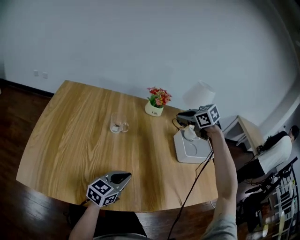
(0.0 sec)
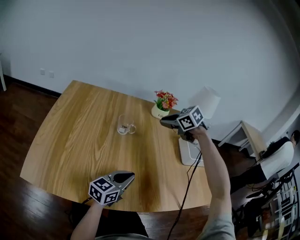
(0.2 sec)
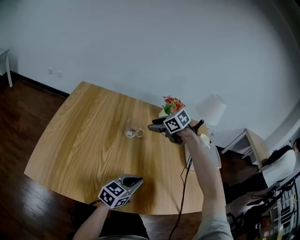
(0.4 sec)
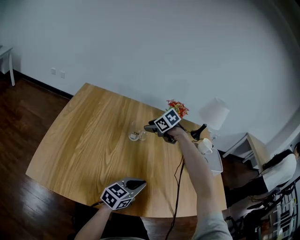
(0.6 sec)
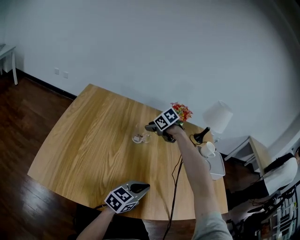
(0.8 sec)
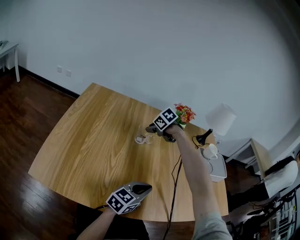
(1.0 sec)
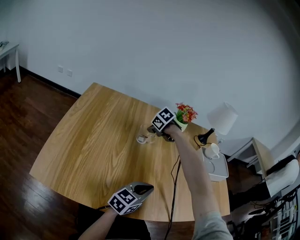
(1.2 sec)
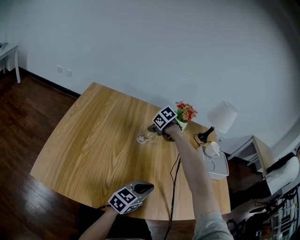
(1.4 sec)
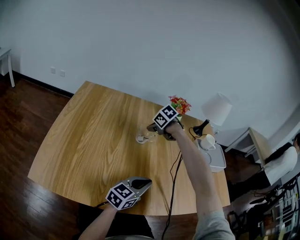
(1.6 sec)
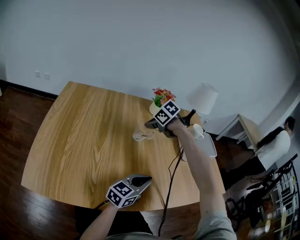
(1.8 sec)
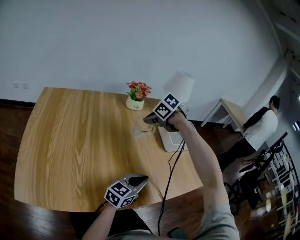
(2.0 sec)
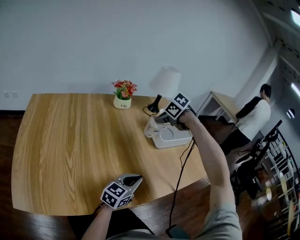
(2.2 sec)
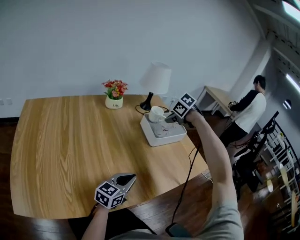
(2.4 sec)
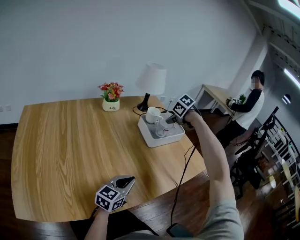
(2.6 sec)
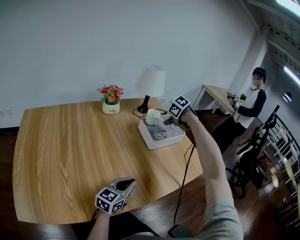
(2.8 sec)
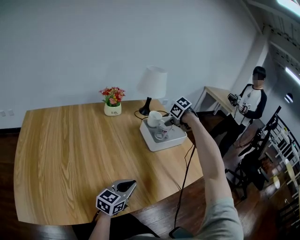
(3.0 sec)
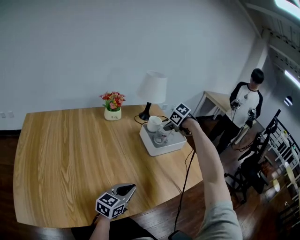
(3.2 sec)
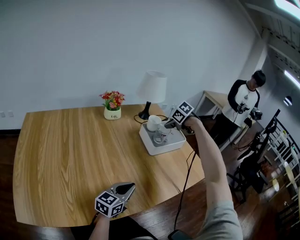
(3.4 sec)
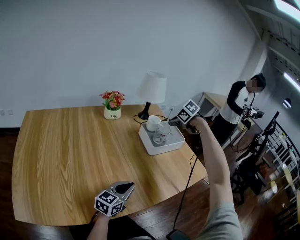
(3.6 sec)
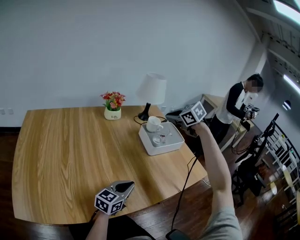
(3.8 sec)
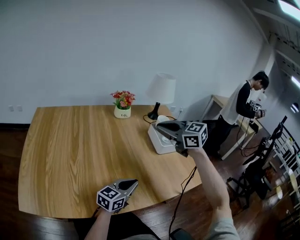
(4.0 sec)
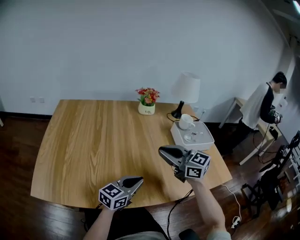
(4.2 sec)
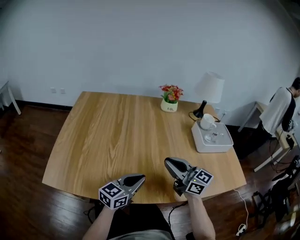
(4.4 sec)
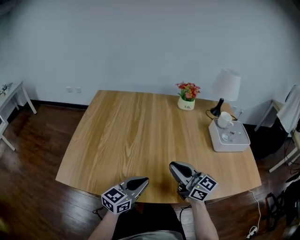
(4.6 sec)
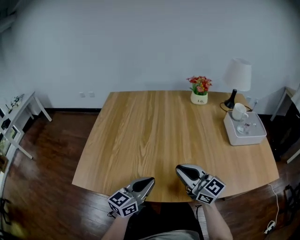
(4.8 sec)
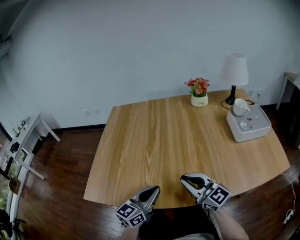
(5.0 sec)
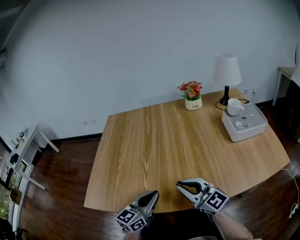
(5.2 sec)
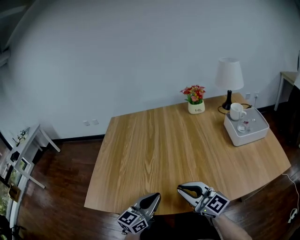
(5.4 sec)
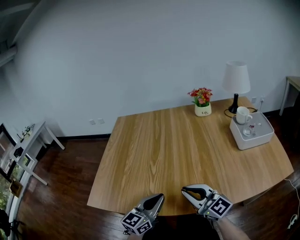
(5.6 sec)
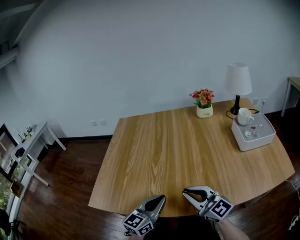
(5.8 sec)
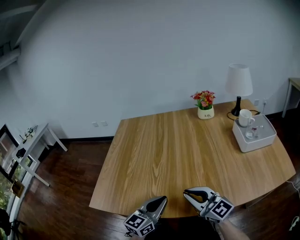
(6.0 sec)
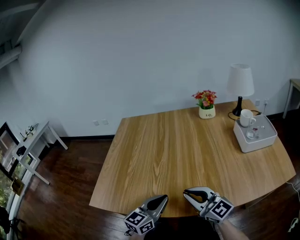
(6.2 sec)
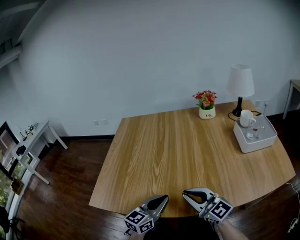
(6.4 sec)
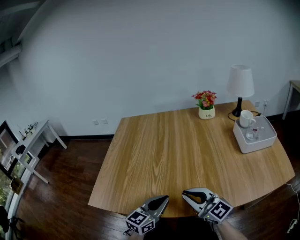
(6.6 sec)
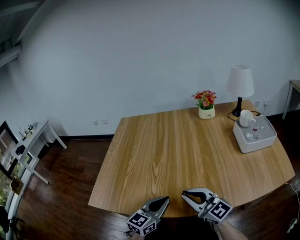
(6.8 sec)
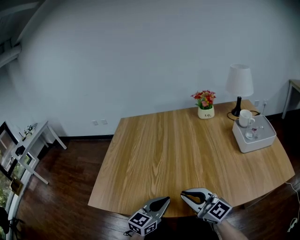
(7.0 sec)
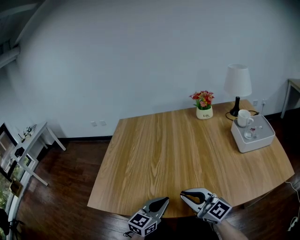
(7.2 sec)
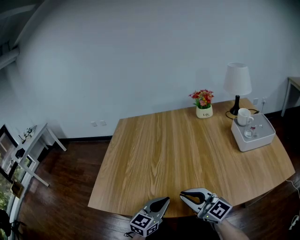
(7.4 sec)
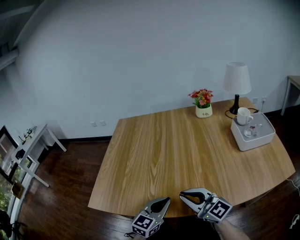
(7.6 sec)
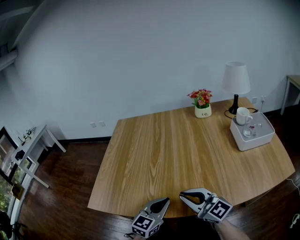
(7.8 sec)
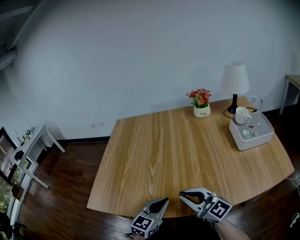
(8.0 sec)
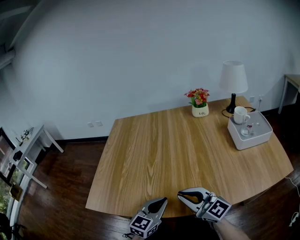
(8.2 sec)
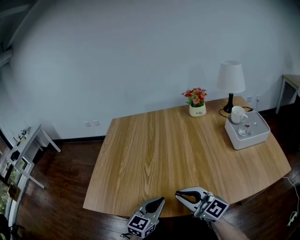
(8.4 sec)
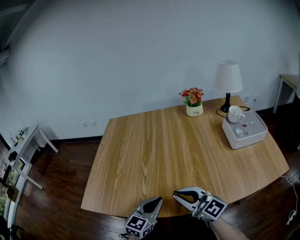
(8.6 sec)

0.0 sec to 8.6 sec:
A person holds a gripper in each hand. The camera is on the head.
0.0 sec to 1.4 sec: The right gripper travels to the left and downward by roughly 30 cm, changes its angle by roughly 30 degrees, and opens and closes again.
1.4 sec to 2.8 sec: The left gripper shifts about 15 cm to the right; the right gripper heads to the right, covering some 50 cm, and swivels about 30 degrees.
2.8 sec to 4.4 sec: The left gripper ends up about 15 cm from where it was. Meanwhile the right gripper reaches about 15 cm upward, then returns, and tips its fingers upward by some 70 degrees.
4.4 sec to 5.8 sec: The right gripper travels to the left and backward by roughly 10 cm, while the left gripper travels to the left by about 10 cm.
5.8 sec to 8.6 sec: There are only small adjustments of the grippers.

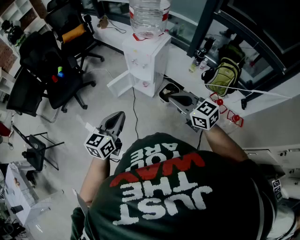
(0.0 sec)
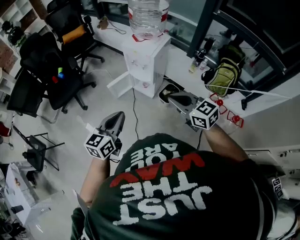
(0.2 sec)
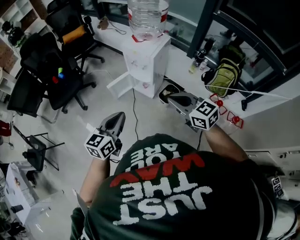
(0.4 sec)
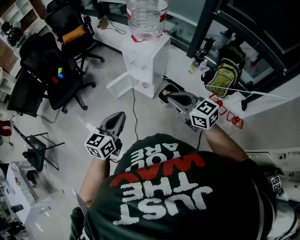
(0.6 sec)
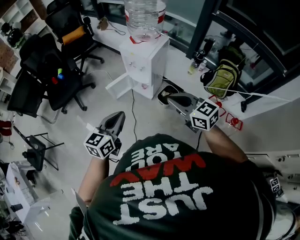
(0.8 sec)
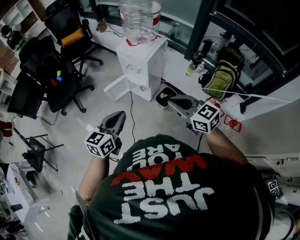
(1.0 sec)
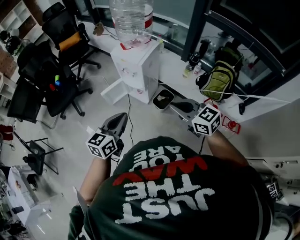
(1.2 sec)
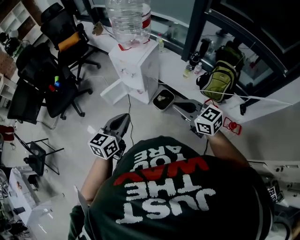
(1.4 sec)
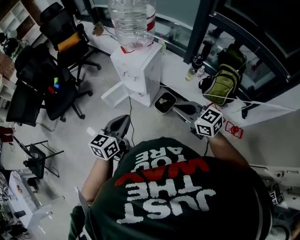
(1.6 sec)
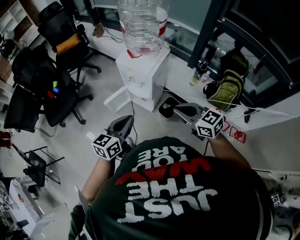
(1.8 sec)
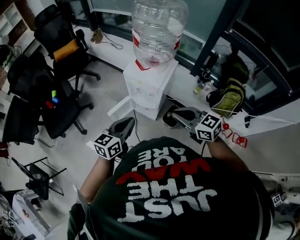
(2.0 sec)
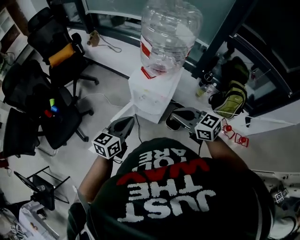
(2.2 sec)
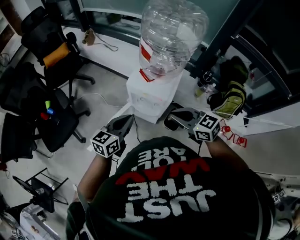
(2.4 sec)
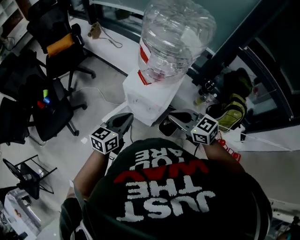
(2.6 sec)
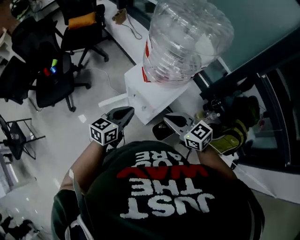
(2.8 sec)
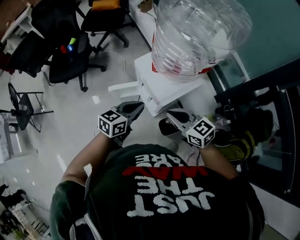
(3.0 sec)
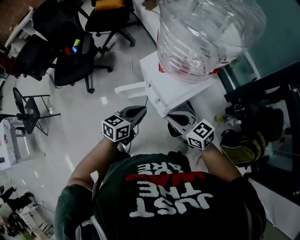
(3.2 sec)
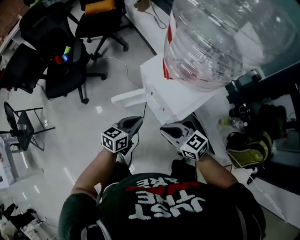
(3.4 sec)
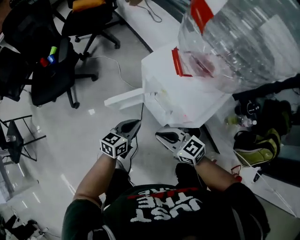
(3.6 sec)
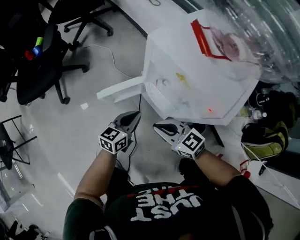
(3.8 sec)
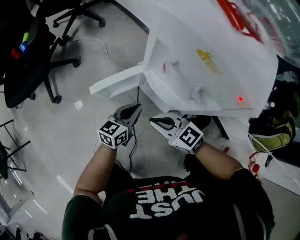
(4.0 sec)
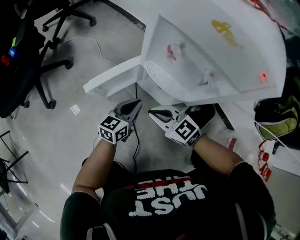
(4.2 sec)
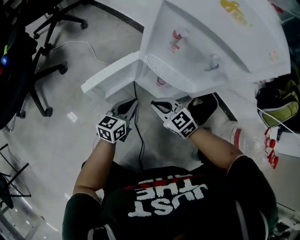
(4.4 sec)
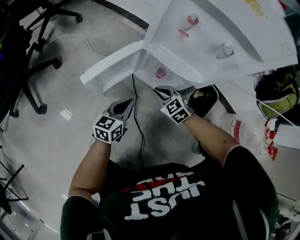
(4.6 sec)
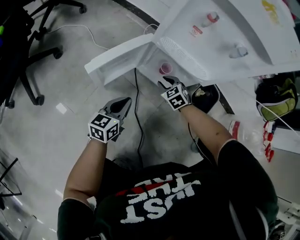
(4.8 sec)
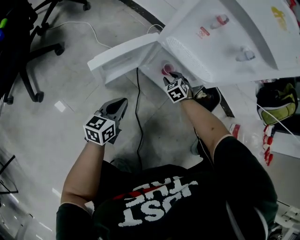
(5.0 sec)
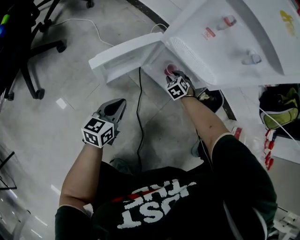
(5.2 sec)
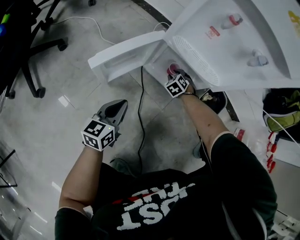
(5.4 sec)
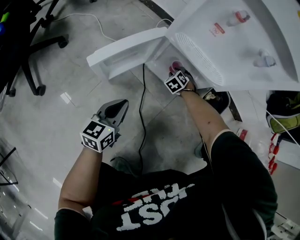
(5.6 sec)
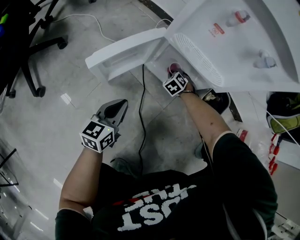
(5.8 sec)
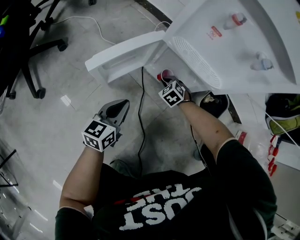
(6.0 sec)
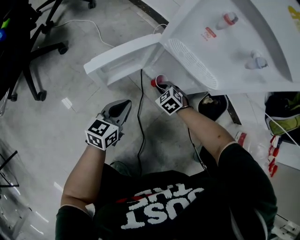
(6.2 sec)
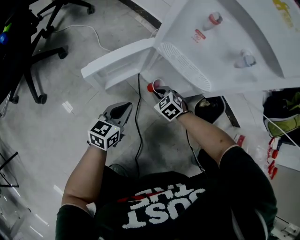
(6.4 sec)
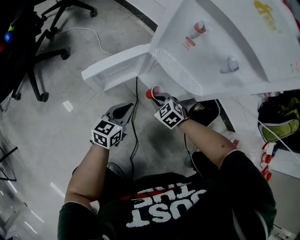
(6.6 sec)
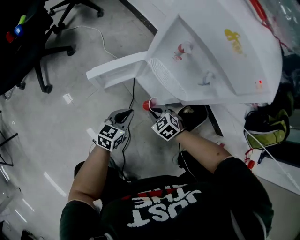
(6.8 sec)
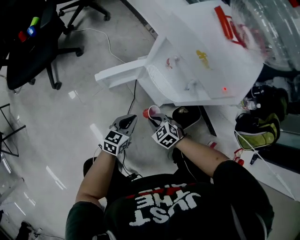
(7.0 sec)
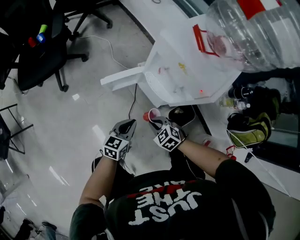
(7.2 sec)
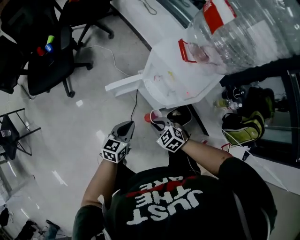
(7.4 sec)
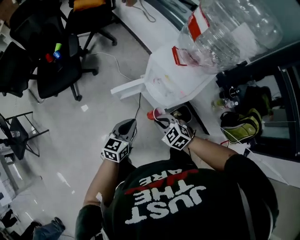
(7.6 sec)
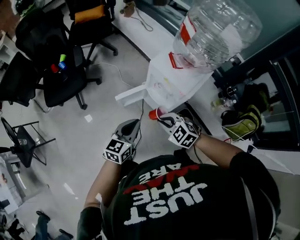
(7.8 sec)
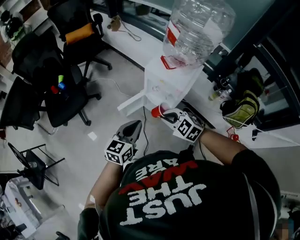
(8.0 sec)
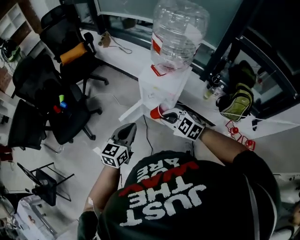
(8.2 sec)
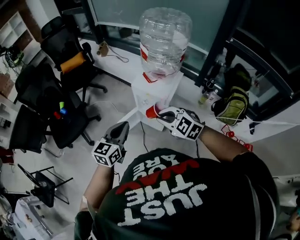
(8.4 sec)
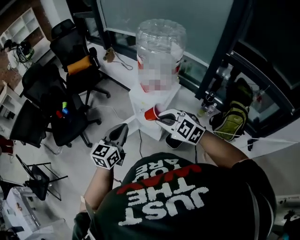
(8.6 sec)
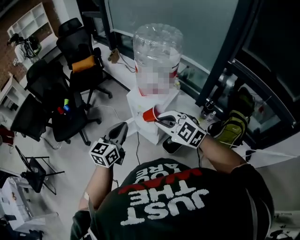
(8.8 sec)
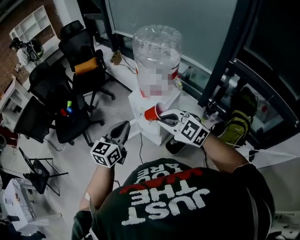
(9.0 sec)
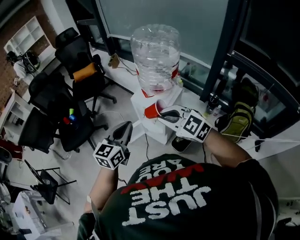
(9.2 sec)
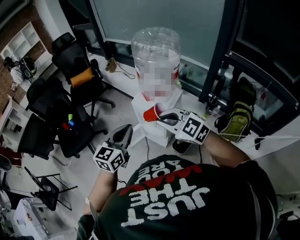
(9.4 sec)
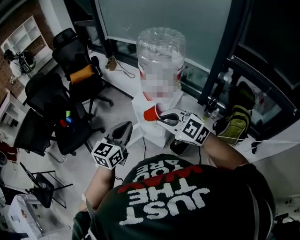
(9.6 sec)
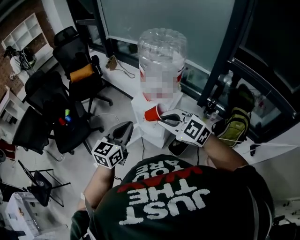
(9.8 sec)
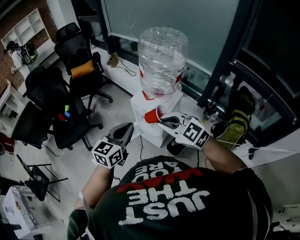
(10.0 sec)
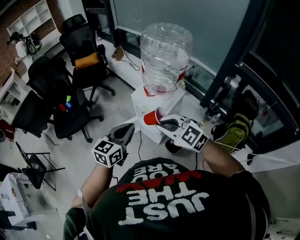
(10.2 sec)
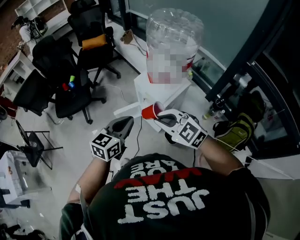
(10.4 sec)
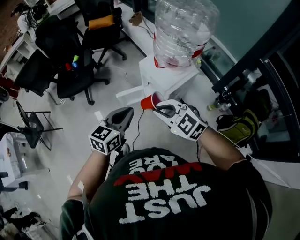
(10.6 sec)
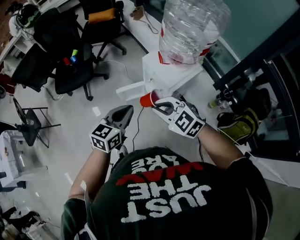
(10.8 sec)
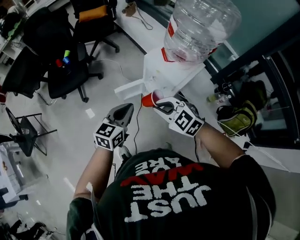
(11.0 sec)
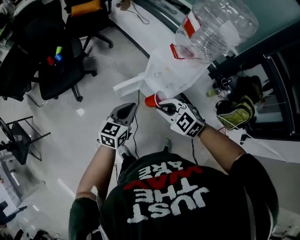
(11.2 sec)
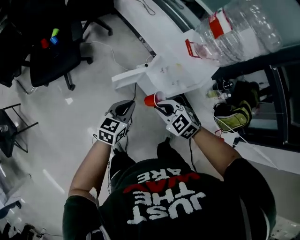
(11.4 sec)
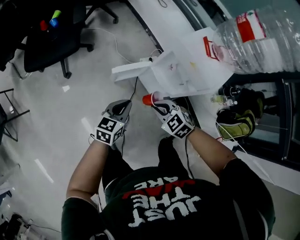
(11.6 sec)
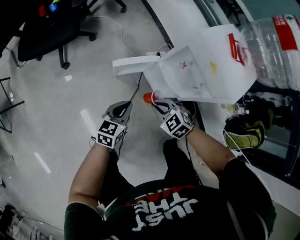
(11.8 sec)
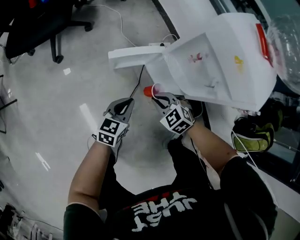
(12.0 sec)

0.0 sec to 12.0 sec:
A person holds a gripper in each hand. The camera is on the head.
0.0 sec to 1.6 sec: The grippers both shift to the right and forward by approximately 15 cm.
1.6 sec to 3.0 sec: Both grippers travel together forward, some 30 cm. The right gripper rotates approximately 20 degrees.
3.0 sec to 4.4 sec: Both grippers travel together downward, some 60 cm. The right gripper swivels approximately 30 degrees.
4.4 sec to 6.0 sec: The right gripper heads downward, covering about 20 cm, rotates some 30 degrees, and opens, then closes once more. The left gripper shifts by about 10 cm.
6.0 sec to 7.6 sec: The grippers both shift upward by some 60 cm. The right gripper swivels approximately 30 degrees.
7.6 sec to 9.0 sec: The grippers both shift upward by some 35 cm. The right gripper turns by roughly 30 degrees.
9.0 sec to 10.4 sec: The left gripper shifts by roughly 5 cm. Meanwhile the right gripper travels downward by some 5 cm.
10.4 sec to 12.0 sec: The grippers both shift downward by approximately 60 cm. The right gripper turns by about 30 degrees.

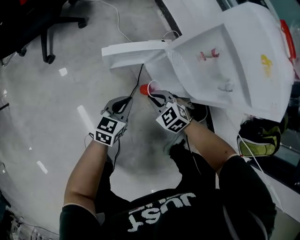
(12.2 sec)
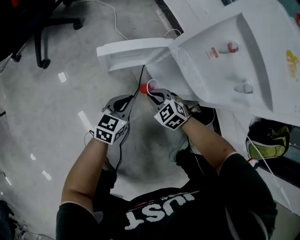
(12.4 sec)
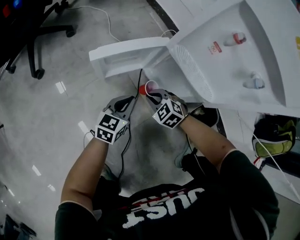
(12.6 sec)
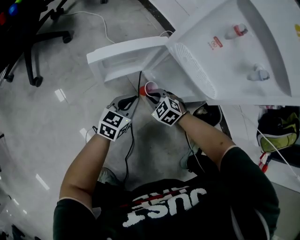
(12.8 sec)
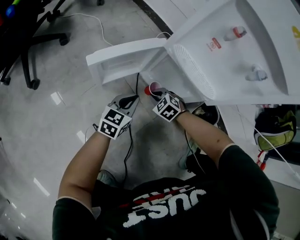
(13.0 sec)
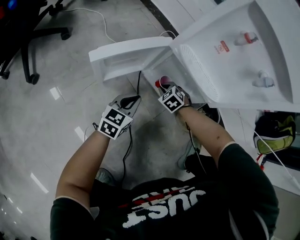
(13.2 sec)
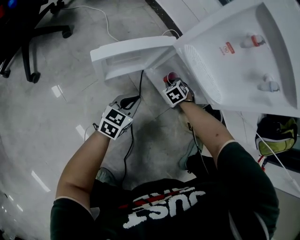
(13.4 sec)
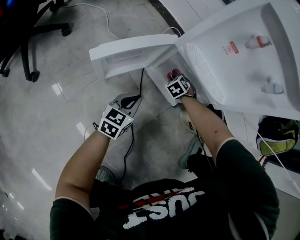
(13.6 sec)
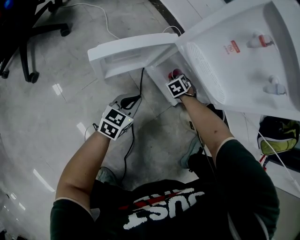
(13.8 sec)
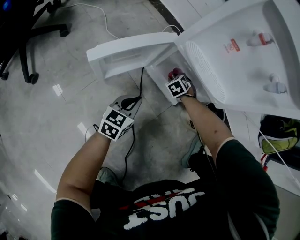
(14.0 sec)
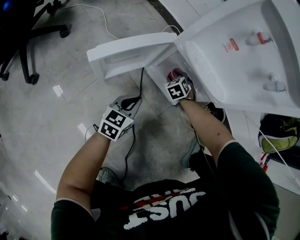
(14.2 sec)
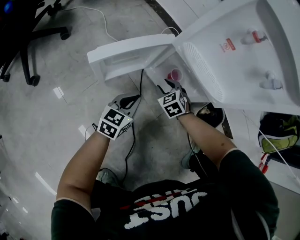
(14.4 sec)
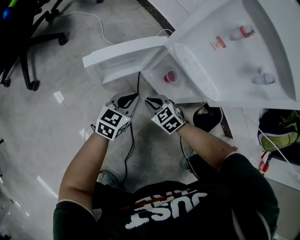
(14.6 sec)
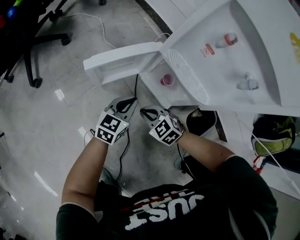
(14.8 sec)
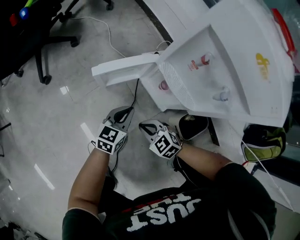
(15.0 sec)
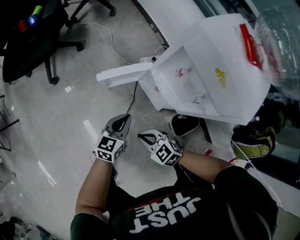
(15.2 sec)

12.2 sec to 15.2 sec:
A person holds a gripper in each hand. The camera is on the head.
12.2 sec to 13.8 sec: The right gripper shifts some 25 cm downward, and rotates approximately 40 degrees, while the left gripper is displaced downward by roughly 15 cm.
13.8 sec to 15.2 sec: Both grippers travel together upward, roughly 30 cm. The right gripper swivels roughly 50 degrees, and opens, then closes once more.
